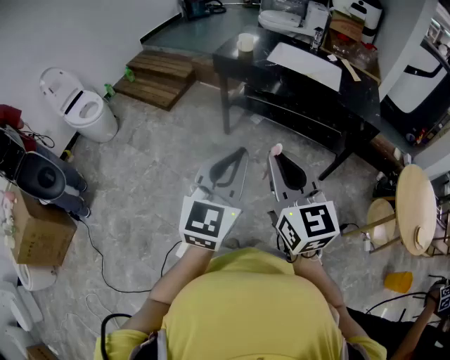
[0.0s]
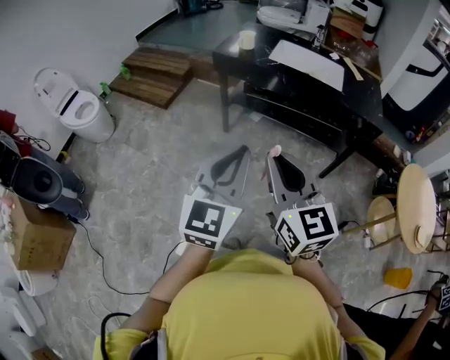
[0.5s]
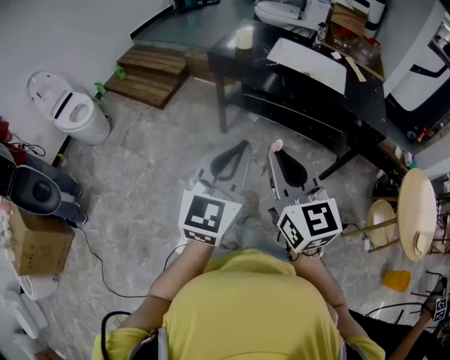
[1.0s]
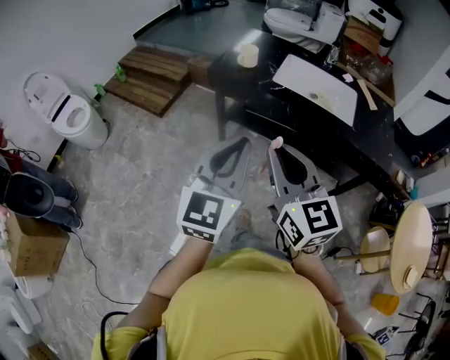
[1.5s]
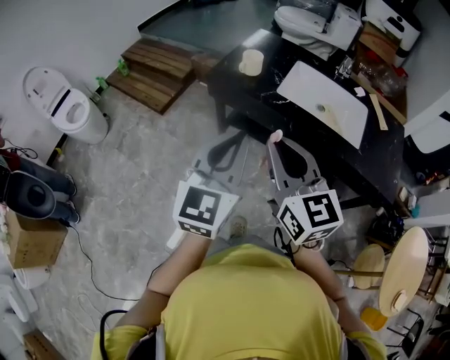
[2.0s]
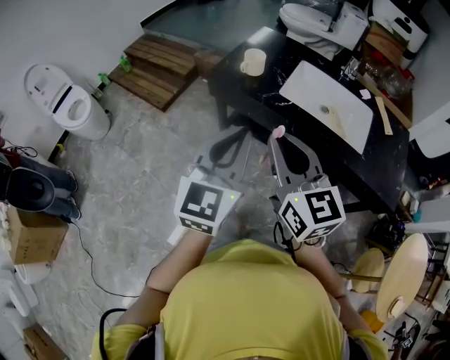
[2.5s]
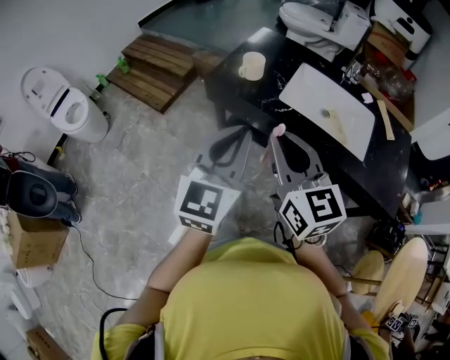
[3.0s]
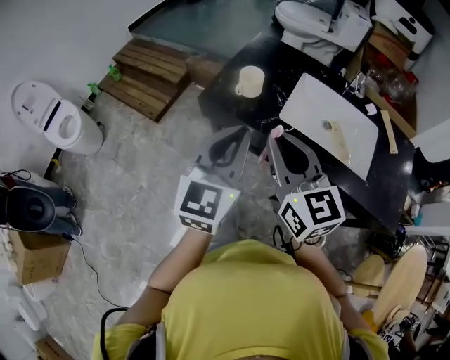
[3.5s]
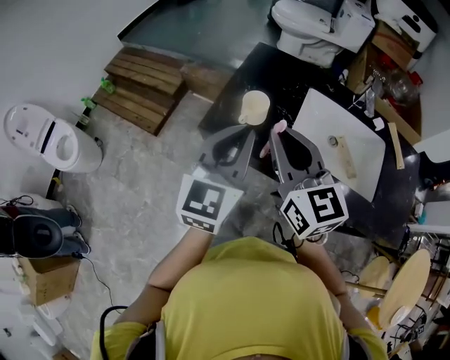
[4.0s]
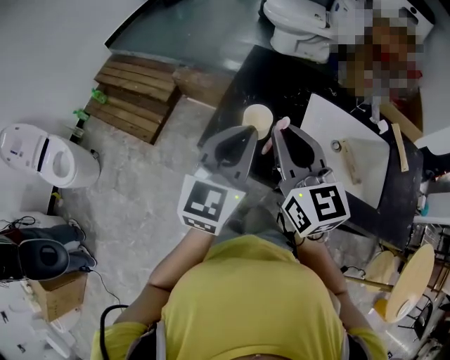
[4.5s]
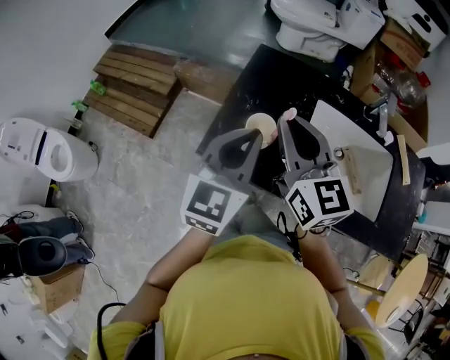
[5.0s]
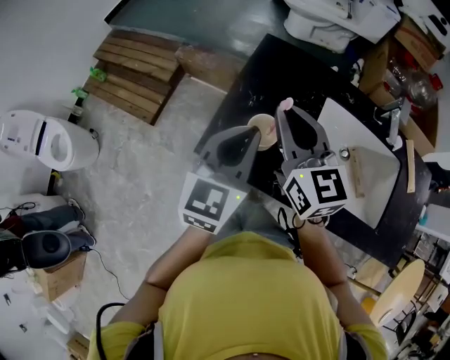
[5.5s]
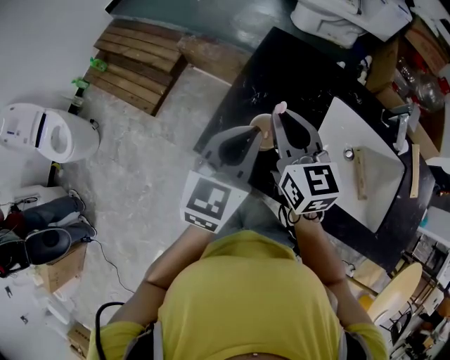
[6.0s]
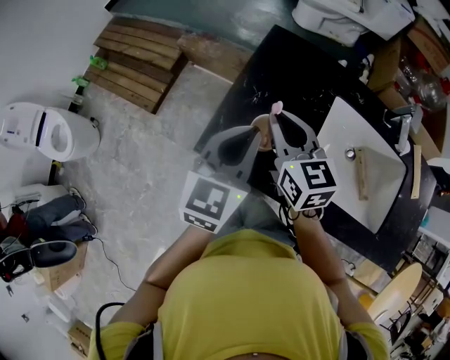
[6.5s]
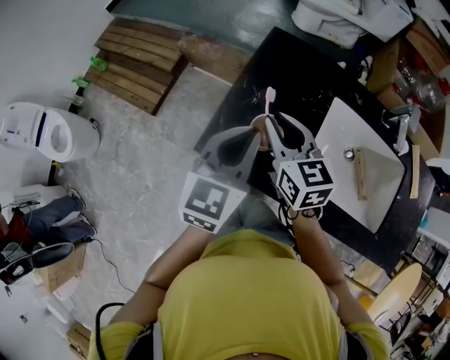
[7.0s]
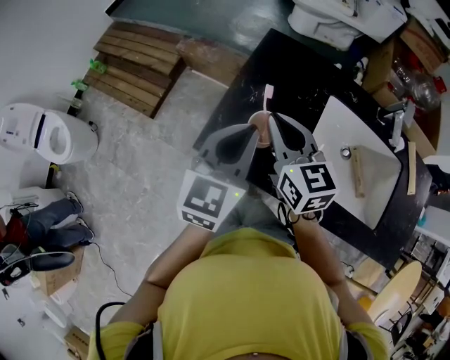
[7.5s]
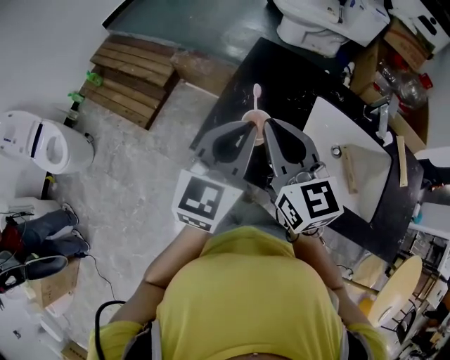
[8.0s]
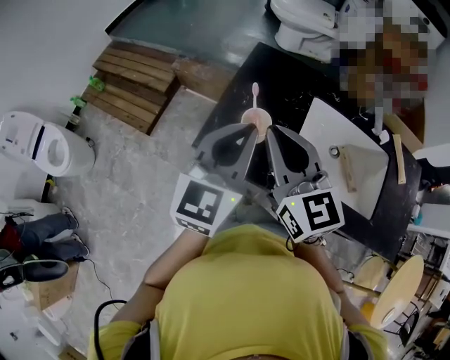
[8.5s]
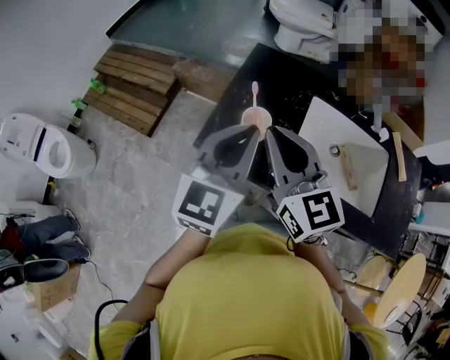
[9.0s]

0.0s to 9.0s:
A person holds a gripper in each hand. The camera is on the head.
0.0s to 2.0s: The two grippers go roughly 35 cm forward.
2.0s to 4.5s: The grippers both shift forward by approximately 35 cm.
4.5s to 7.0s: The left gripper heads forward and downward, covering roughly 10 cm. The right gripper travels downward and forward by roughly 20 cm.
7.0s to 9.0s: The right gripper heads upward and backward, covering some 20 cm, while the left gripper shifts about 10 cm upward and backward.

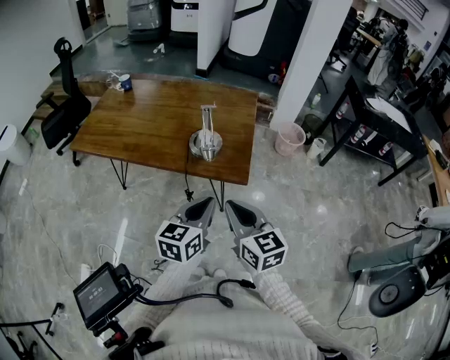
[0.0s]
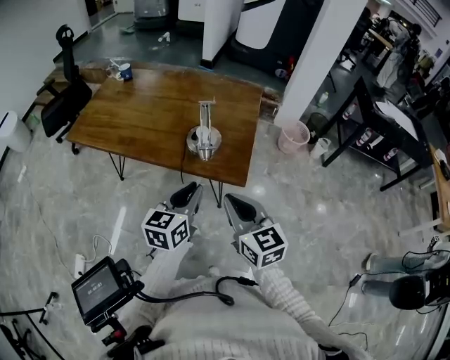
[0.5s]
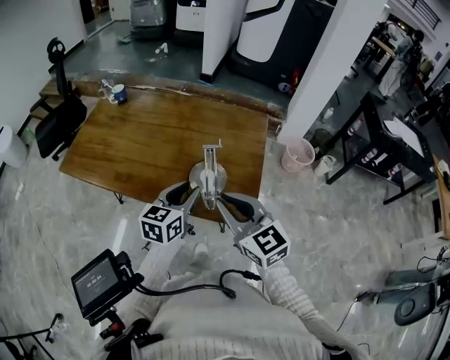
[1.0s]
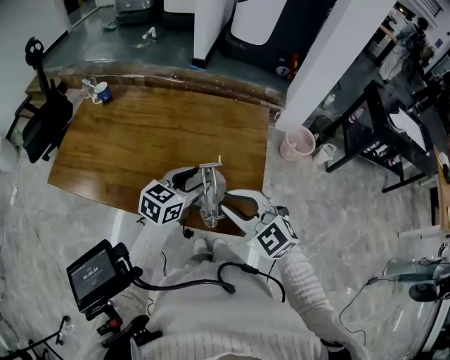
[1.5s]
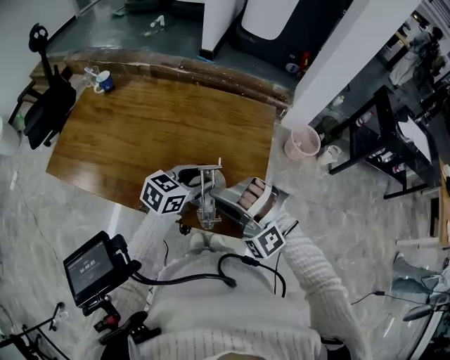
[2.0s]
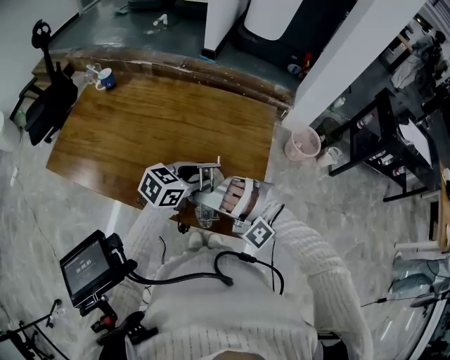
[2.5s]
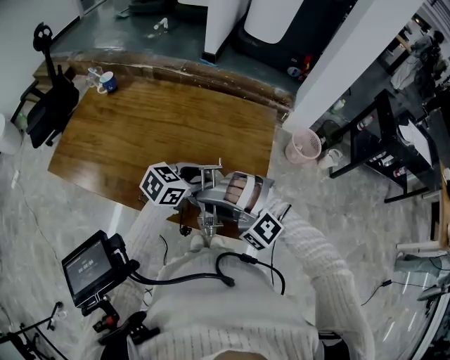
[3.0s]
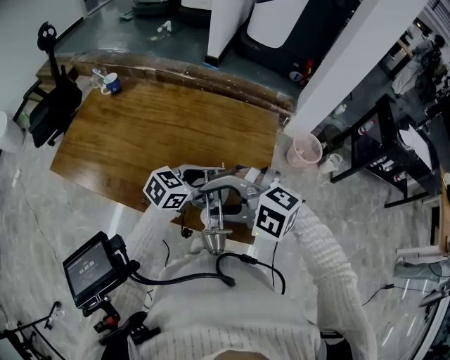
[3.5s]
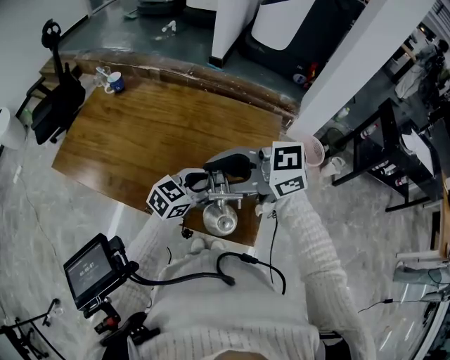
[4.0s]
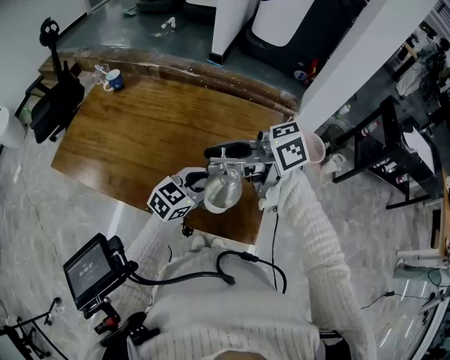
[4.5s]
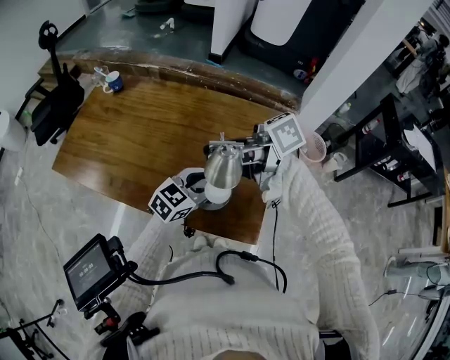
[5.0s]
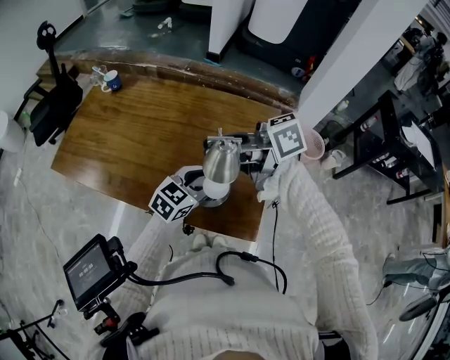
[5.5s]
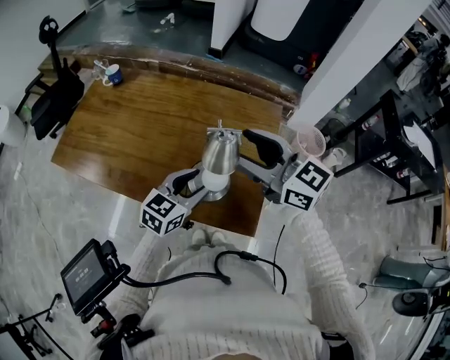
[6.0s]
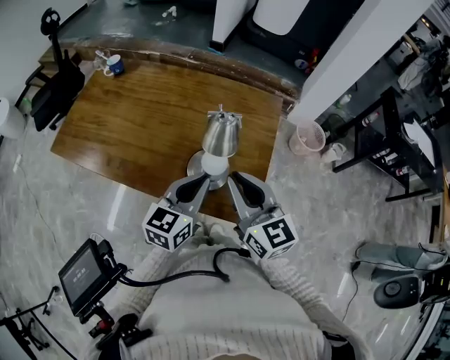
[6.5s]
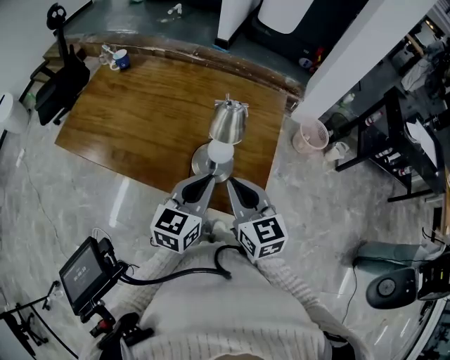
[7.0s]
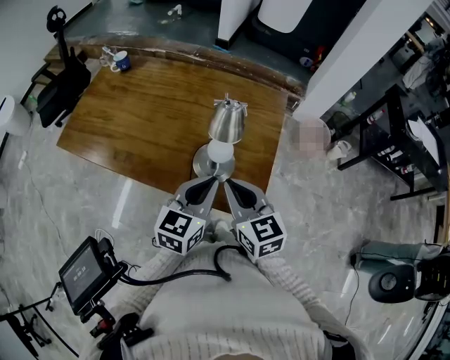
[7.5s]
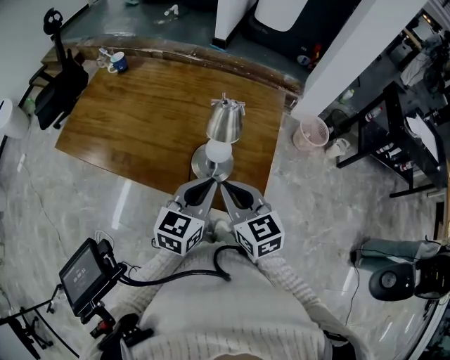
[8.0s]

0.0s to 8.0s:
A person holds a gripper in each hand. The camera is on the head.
0.0s to 2.0s: The two grippers go roughly 30 cm forward. The left gripper changes its angle by some 30 degrees, and opens its fingers. Meanwhile the right gripper twists approximately 100 degrees counterclockwise, seen from behind, and opens.
2.0s to 4.0s: The right gripper heads upward, covering some 10 cm, and rolls clockwise, seen from behind, by roughly 80 degrees.
4.0s to 6.0s: The right gripper moves roughly 10 cm, and turns by approximately 40 degrees.
6.0s to 8.0s: The right gripper heads backward and downward, covering some 20 cm, rotates roughly 30 degrees, and closes up; the left gripper moves backward, approximately 10 cm, and closes.

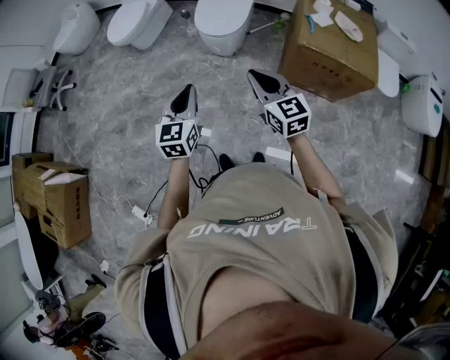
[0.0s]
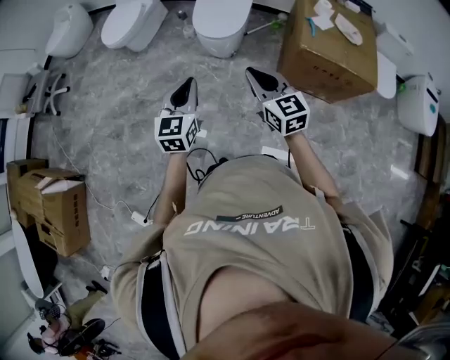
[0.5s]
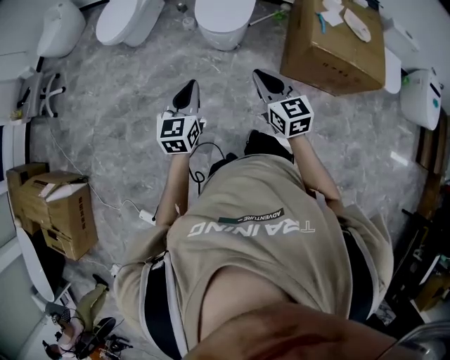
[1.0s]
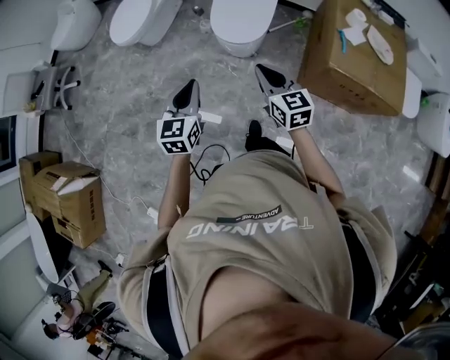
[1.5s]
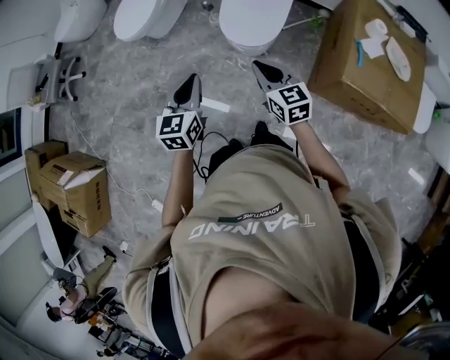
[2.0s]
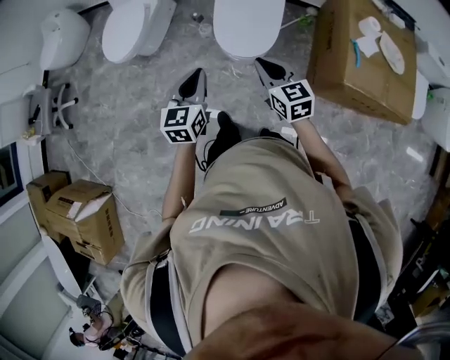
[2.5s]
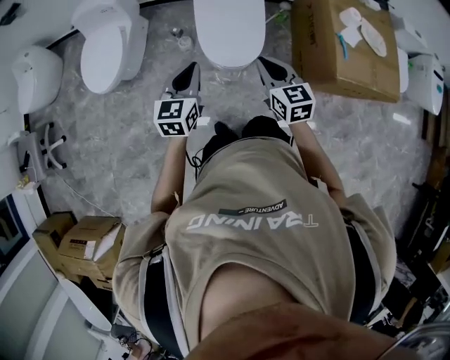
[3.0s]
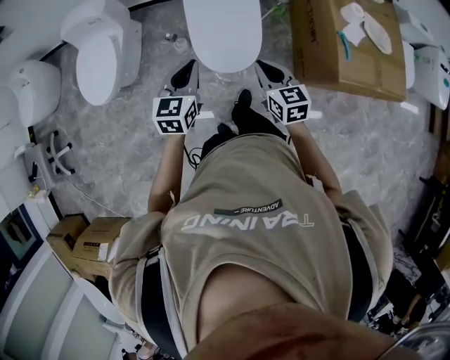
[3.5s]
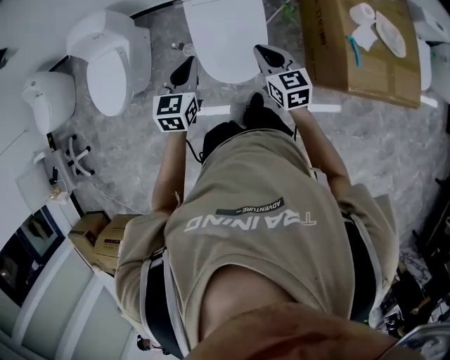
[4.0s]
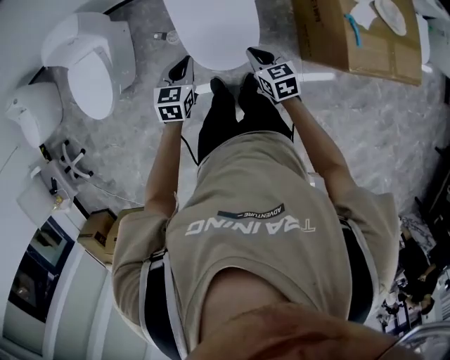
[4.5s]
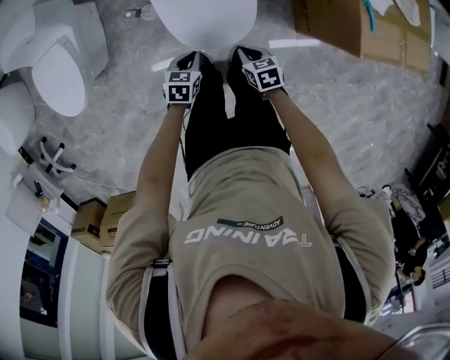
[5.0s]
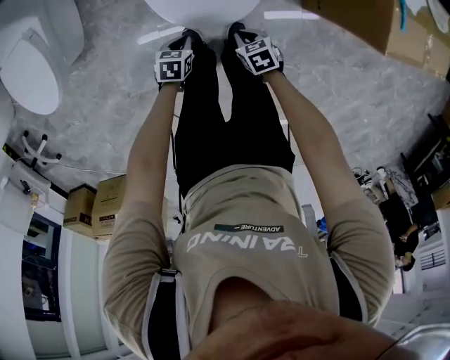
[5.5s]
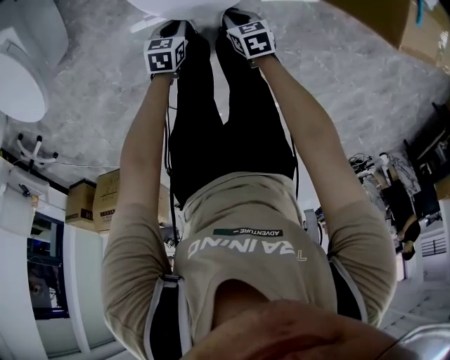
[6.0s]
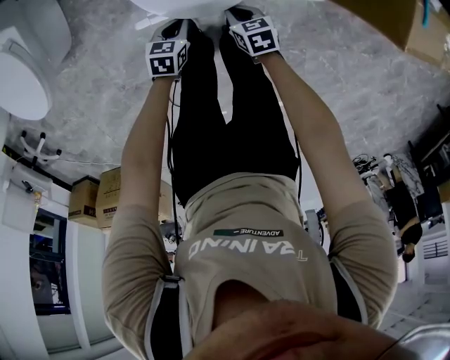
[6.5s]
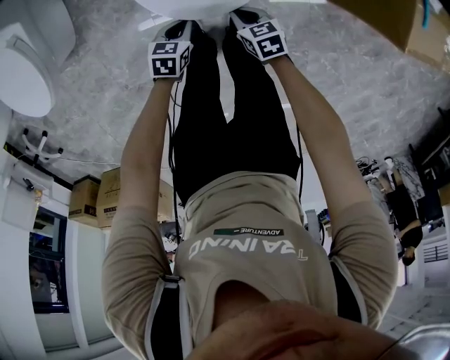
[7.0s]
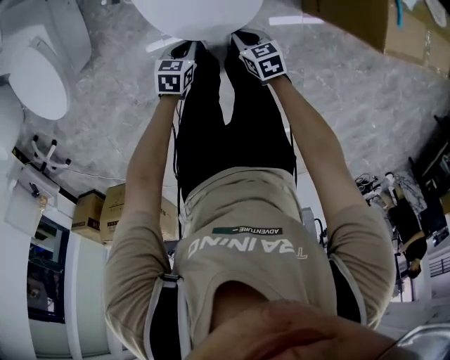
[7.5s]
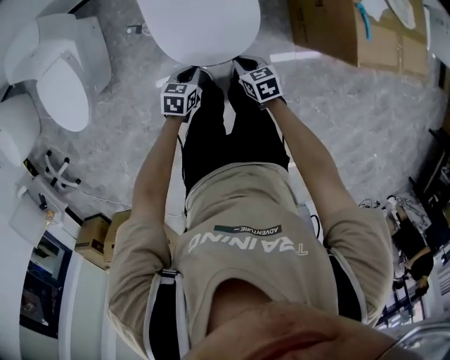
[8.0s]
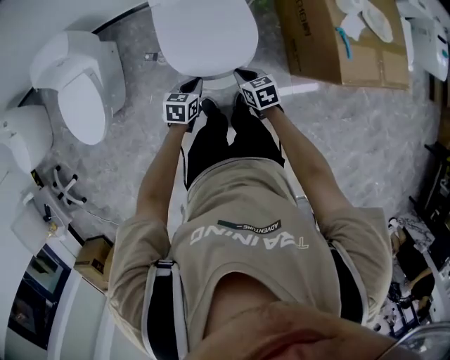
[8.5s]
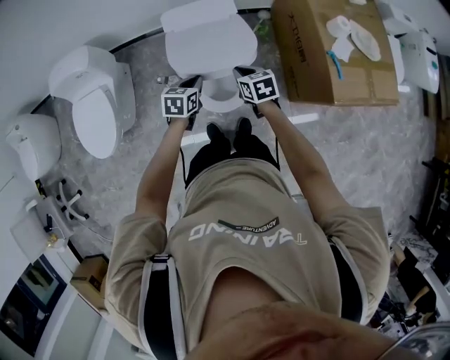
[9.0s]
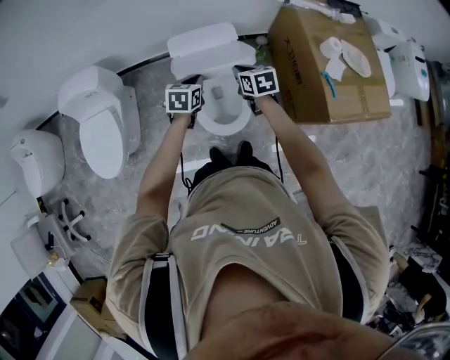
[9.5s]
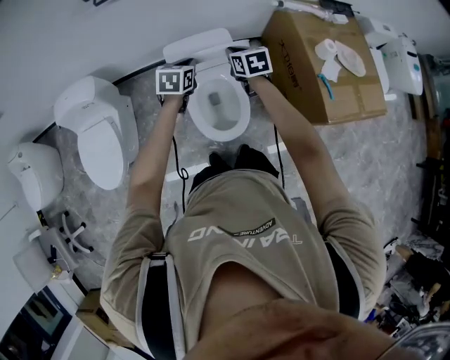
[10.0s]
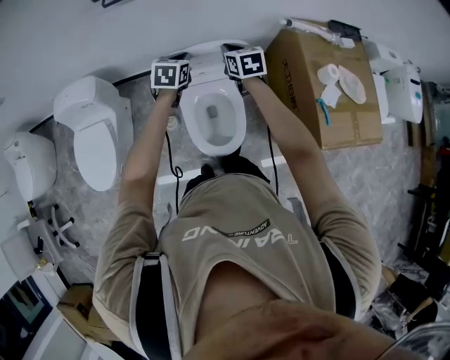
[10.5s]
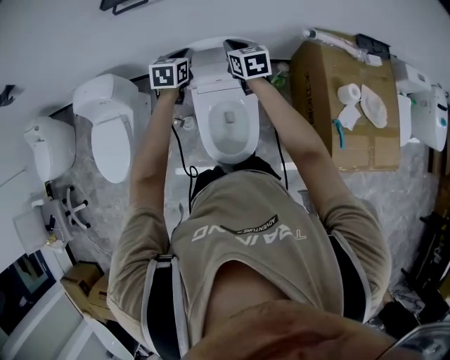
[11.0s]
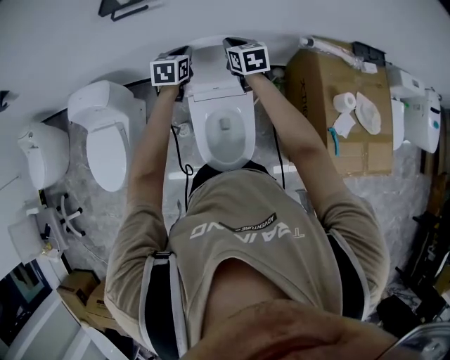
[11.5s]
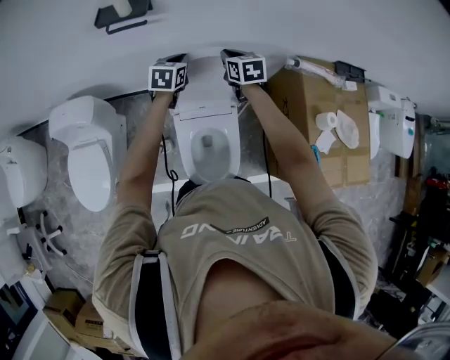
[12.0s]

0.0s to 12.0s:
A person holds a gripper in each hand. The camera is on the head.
0.0s to 2.0s: The grippers both shift forward by some 35 cm.
2.0s to 4.0s: The left gripper shifts by approximately 35 cm, and turns by some 30 degrees, while the right gripper changes place by roughly 30 cm, and turns by approximately 30 degrees.
4.0s to 6.0s: The grippers both shift downward by approximately 50 cm. The left gripper rotates roughly 40 degrees. Meanwhile the right gripper tilts its fingers some 40 degrees downward.
6.0s to 8.0s: Both grippers move upward, about 20 cm.
8.0s to 10.0s: Both grippers move upward and forward, some 40 cm. The left gripper turns by roughly 20 degrees. The right gripper changes its angle by approximately 20 degrees.
10.0s to 12.0s: Both grippers move forward, approximately 25 cm.
